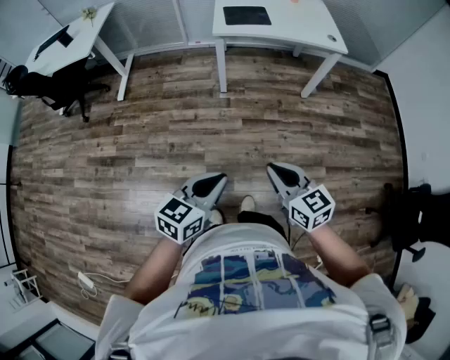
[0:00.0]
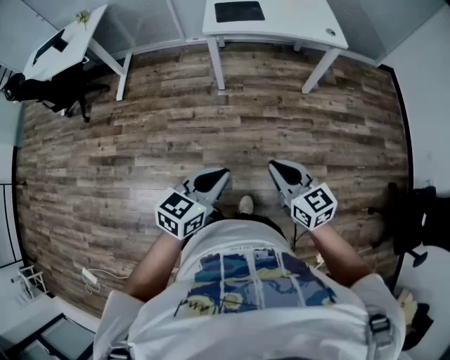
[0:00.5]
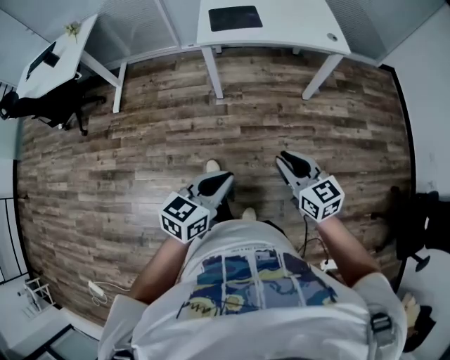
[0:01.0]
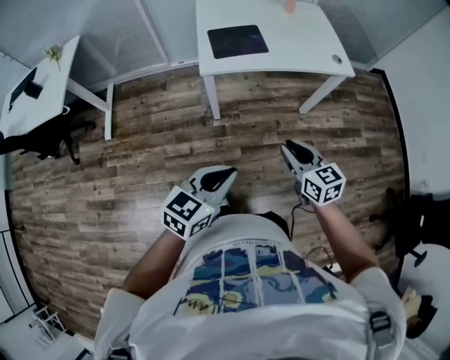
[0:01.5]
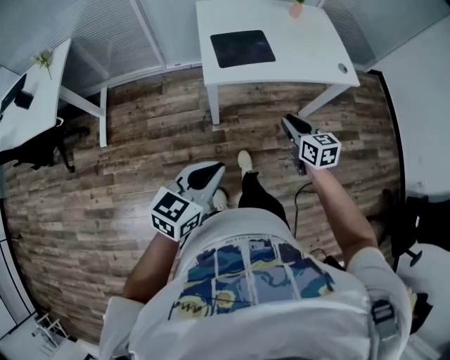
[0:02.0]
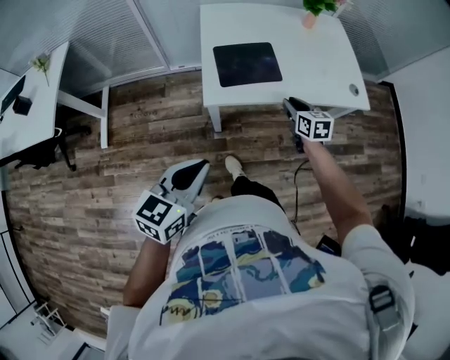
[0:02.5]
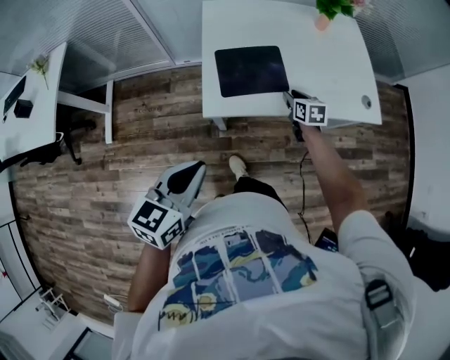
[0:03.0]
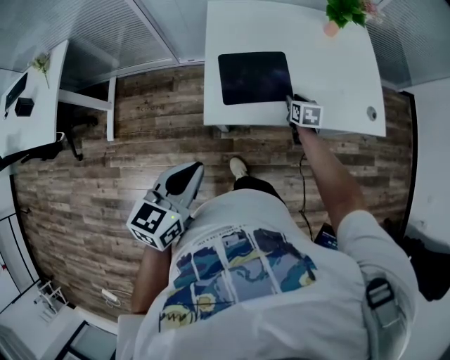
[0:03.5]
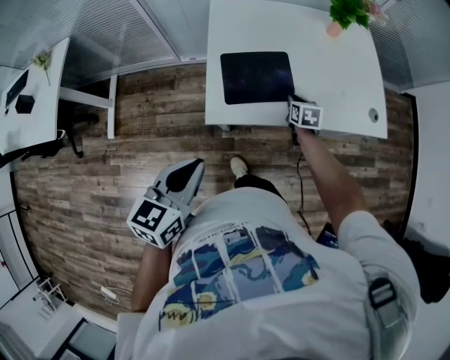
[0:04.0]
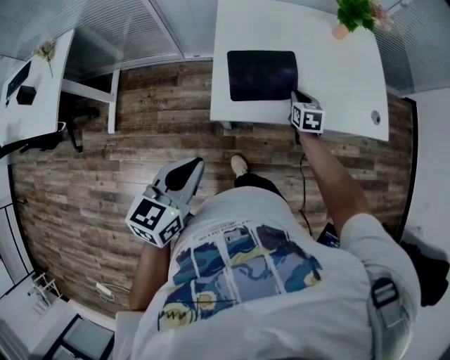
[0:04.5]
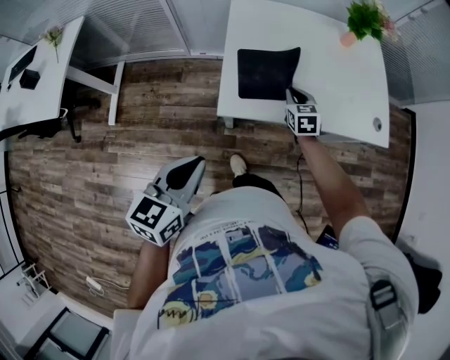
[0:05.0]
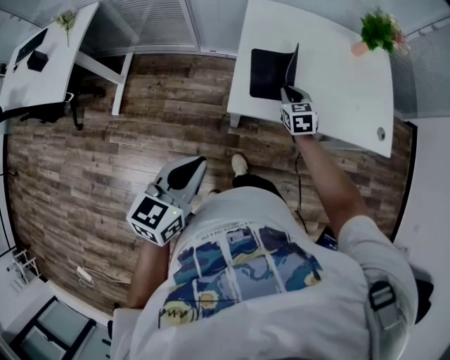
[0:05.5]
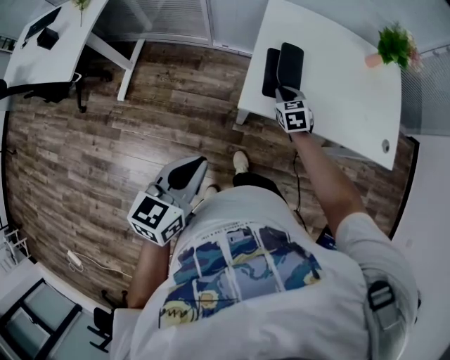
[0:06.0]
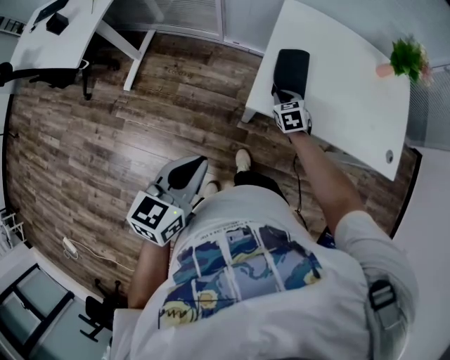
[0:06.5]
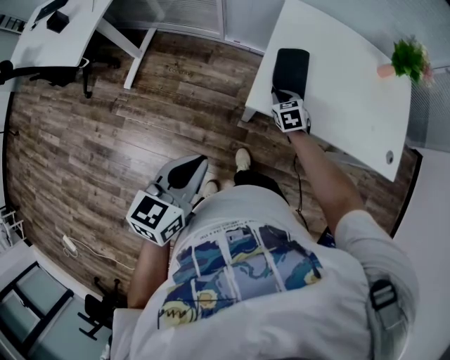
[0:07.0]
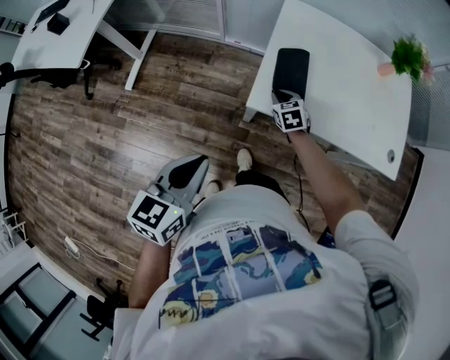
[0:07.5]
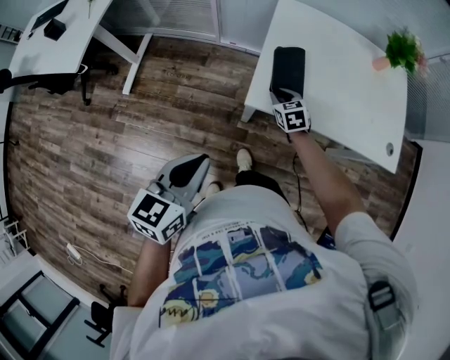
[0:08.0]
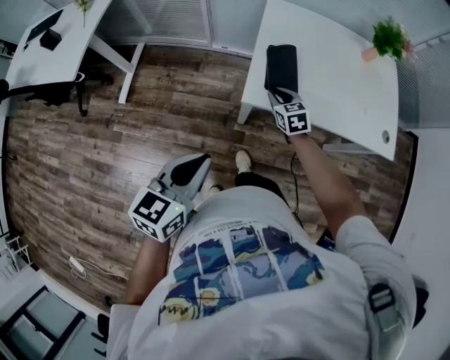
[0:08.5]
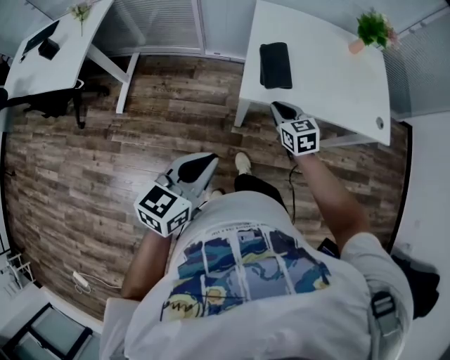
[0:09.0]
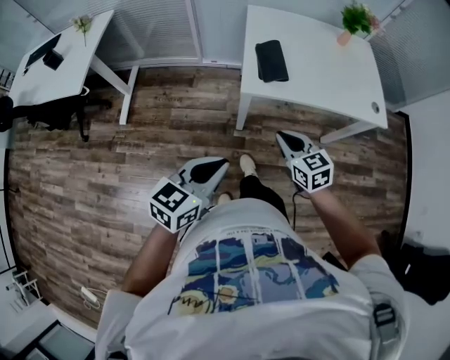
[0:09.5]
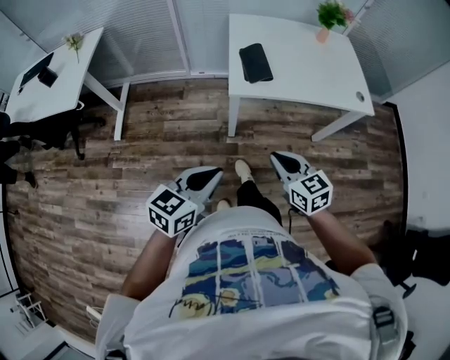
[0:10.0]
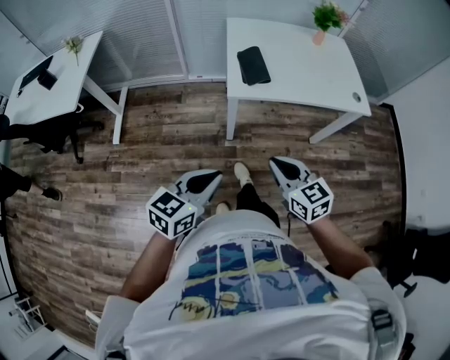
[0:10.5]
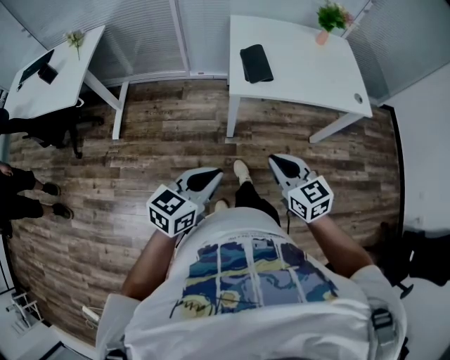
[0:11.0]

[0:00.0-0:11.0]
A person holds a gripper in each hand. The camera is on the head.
0:00.0 to 0:02.0: The two grippers travel together, forward, some 50 cm. The right gripper swivels approximately 20 degrees.
0:02.0 to 0:03.5: The left gripper heads forward, covering roughly 25 cm, while the right gripper travels forward and downward by roughly 40 cm.
0:03.5 to 0:05.5: The left gripper travels backward and to the left by some 10 cm. The right gripper heads to the left and upward, covering some 15 cm, turns by roughly 30 degrees, and closes up.
0:05.5 to 0:07.5: The right gripper heads to the left and downward, covering some 10 cm.
0:07.5 to 0:09.0: The right gripper moves backward and upward, some 15 cm. Meanwhile the left gripper goes approximately 5 cm backward.
0:09.0 to 0:11.0: The right gripper heads backward, covering roughly 30 cm, while the left gripper is displaced backward by roughly 15 cm.

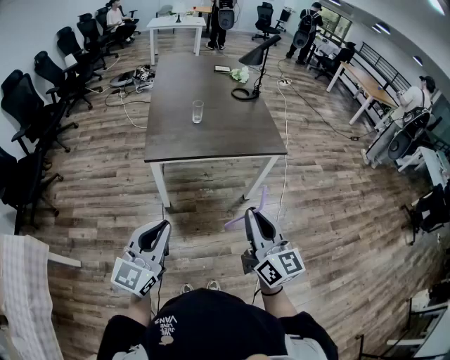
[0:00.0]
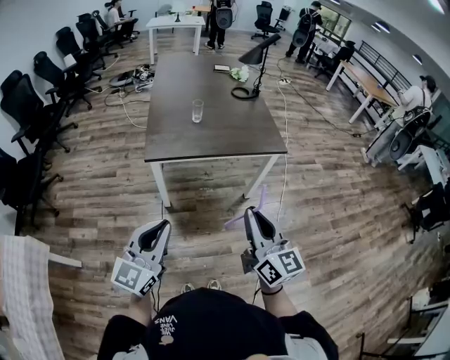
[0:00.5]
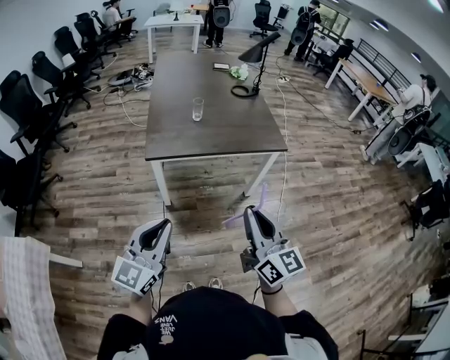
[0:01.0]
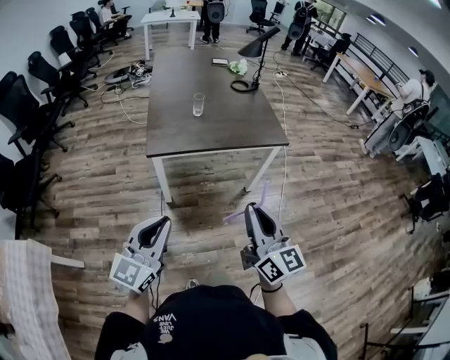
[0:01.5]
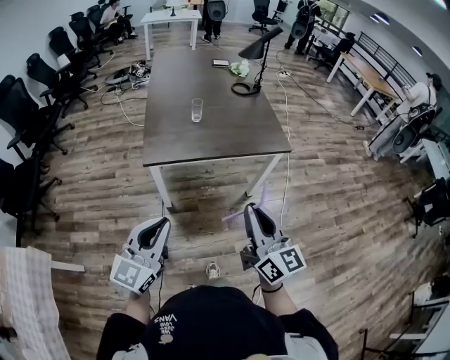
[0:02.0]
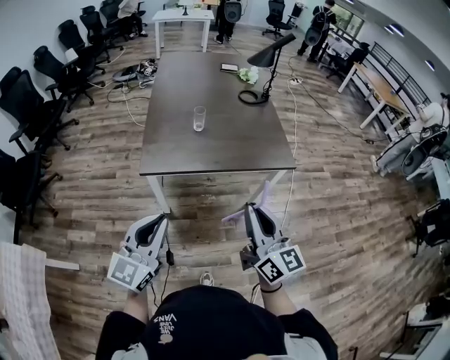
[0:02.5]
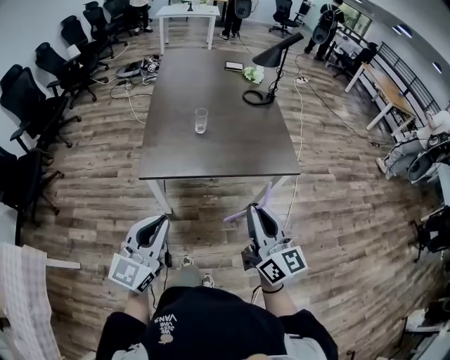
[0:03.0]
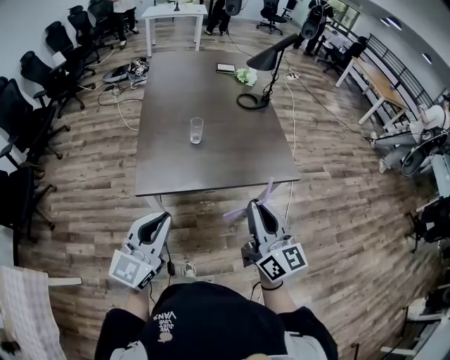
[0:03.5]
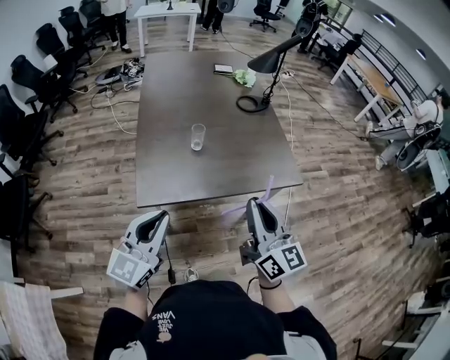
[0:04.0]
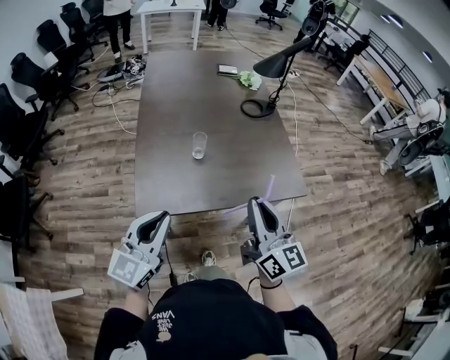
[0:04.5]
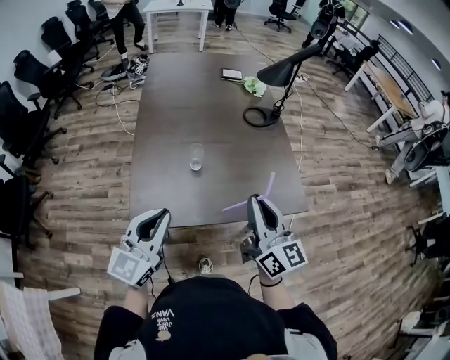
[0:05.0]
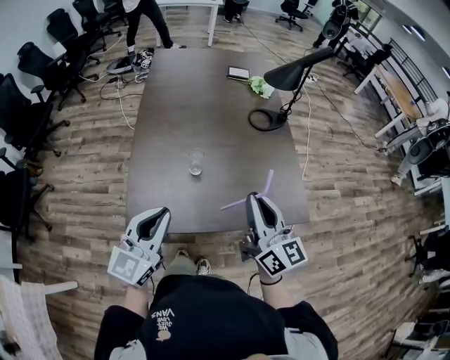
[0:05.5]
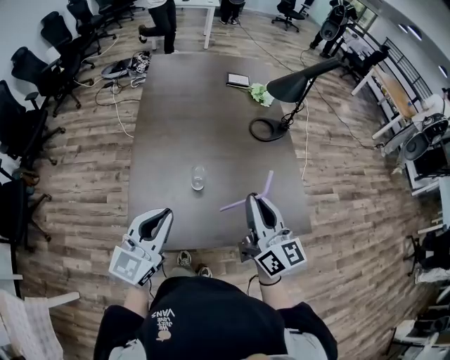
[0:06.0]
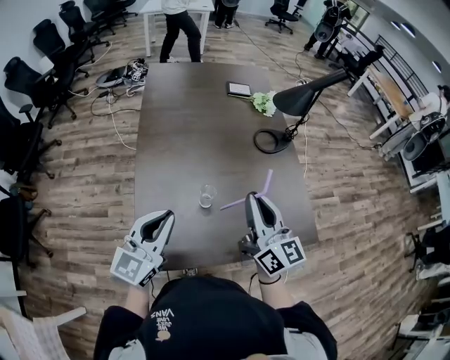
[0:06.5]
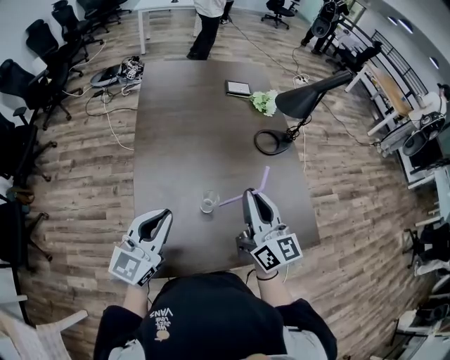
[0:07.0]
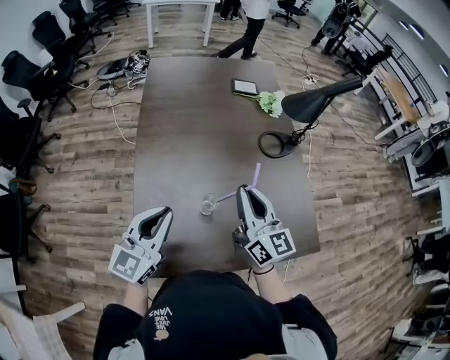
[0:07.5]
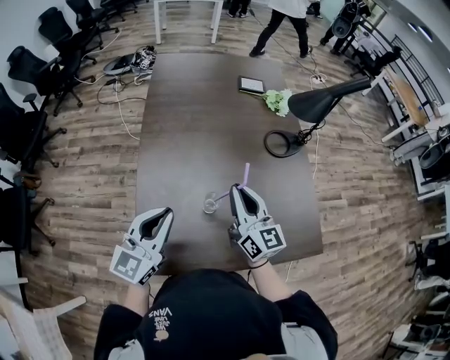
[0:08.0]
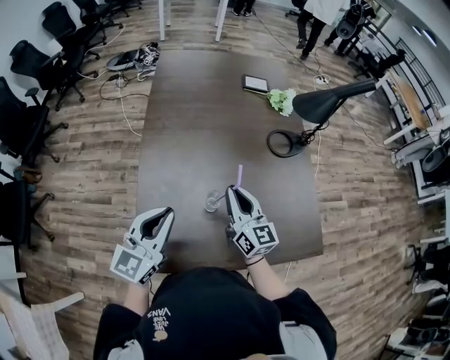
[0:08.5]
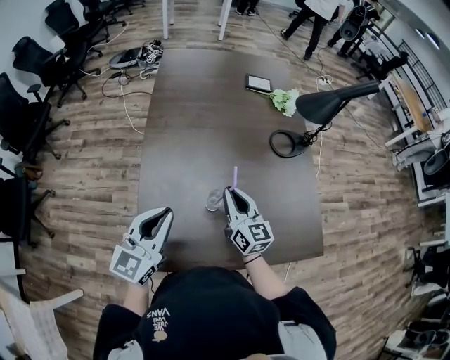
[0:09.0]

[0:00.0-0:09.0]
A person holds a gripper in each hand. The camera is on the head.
0:00.0 to 0:02.0: Both grippers travel together forward, about 5 cm.
0:02.0 to 0:04.5: The two grippers go some 30 cm forward.
0:04.5 to 0:07.0: The two grippers go some 30 cm forward.
0:07.0 to 0:09.0: The right gripper shifts about 15 cm downward.

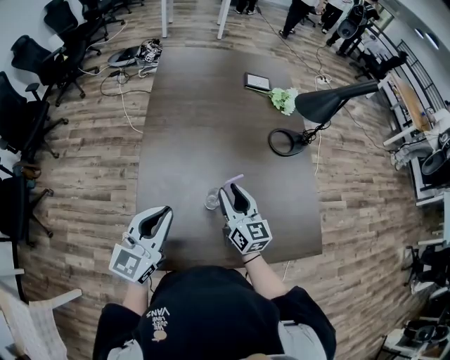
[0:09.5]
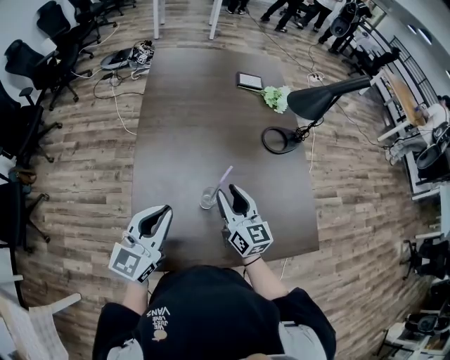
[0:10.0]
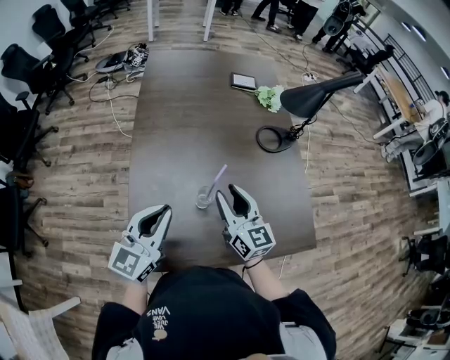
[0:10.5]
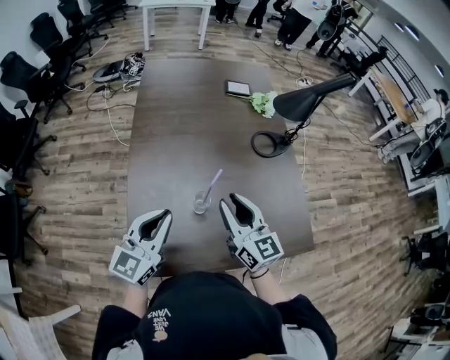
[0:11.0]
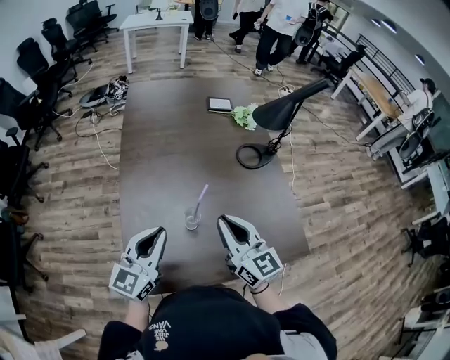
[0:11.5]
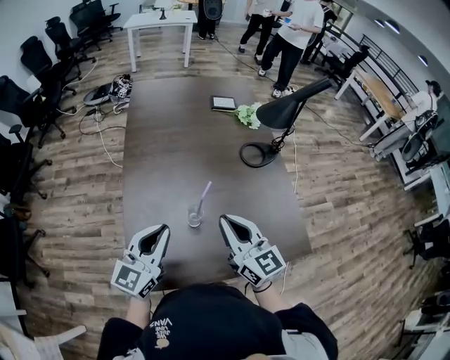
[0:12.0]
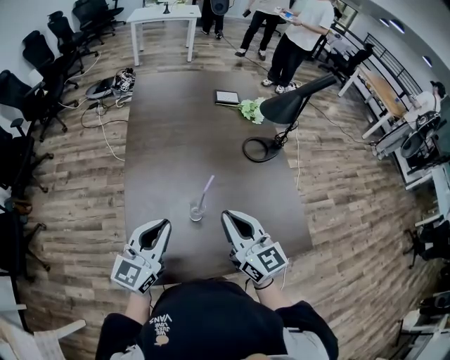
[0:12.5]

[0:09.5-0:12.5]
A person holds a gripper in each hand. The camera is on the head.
0:09.5 to 0:11.0: The right gripper goes some 10 cm upward.
0:11.0 to 0:12.5: The right gripper closes up.

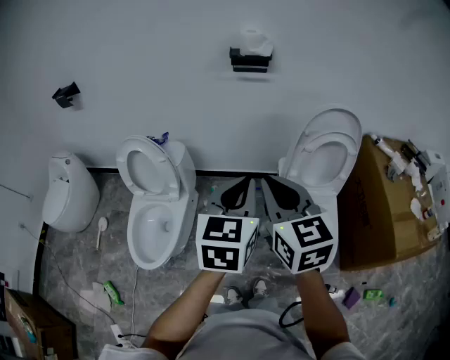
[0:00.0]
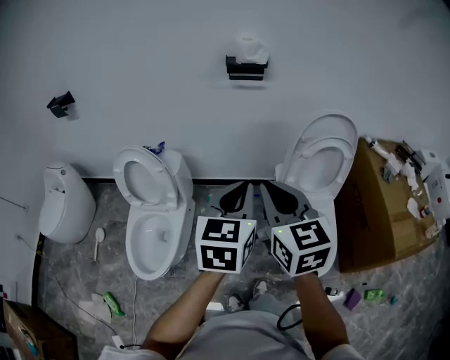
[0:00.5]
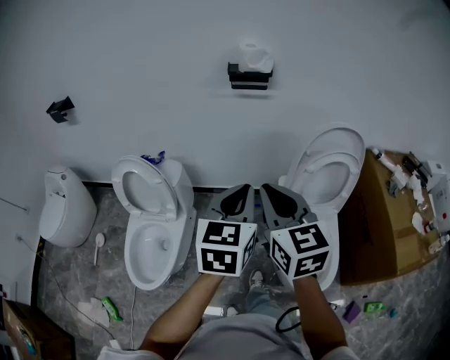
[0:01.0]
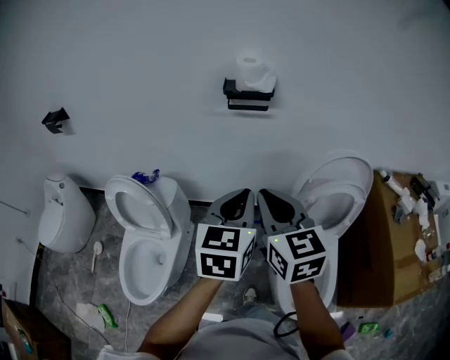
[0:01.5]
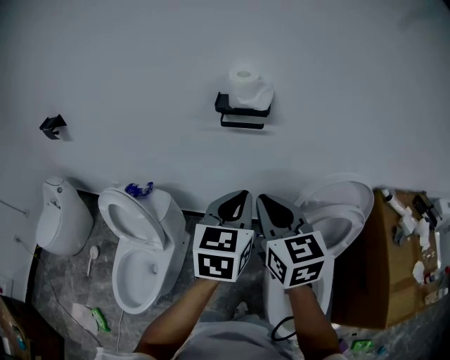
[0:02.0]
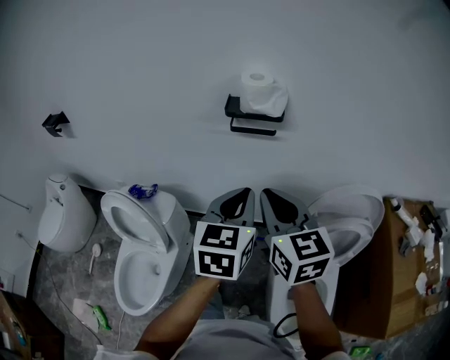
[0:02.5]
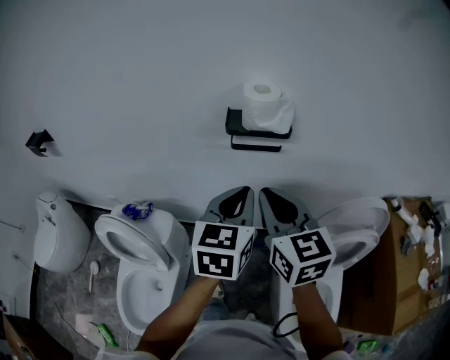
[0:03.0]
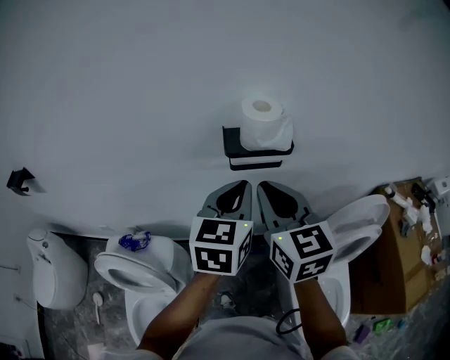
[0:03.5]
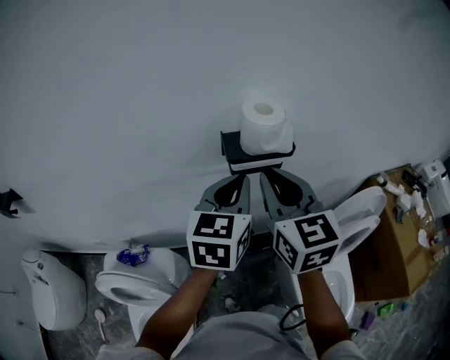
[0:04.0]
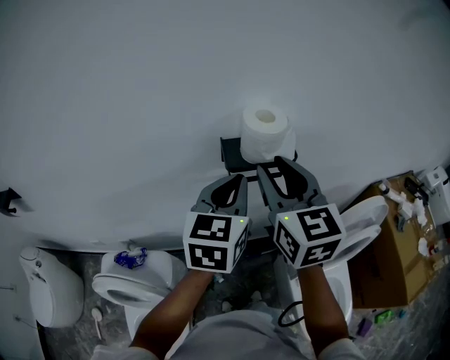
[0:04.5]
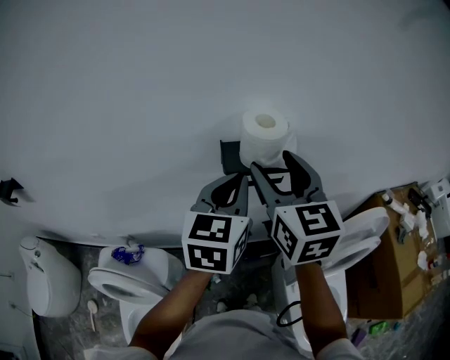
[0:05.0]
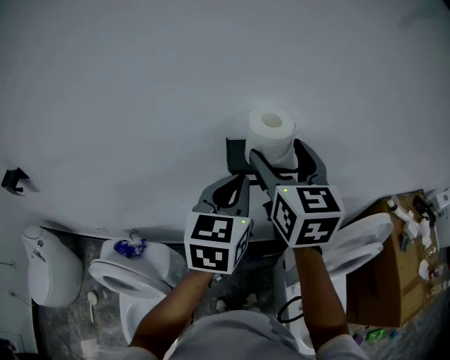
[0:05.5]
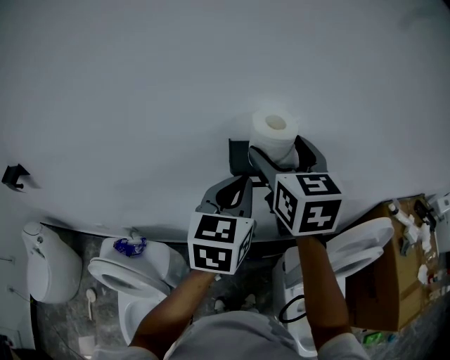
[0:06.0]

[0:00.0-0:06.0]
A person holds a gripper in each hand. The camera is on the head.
0:00.0 to 0:02.0: The grippers both shift forward by roughly 25 cm.
0:02.0 to 0:04.0: The two grippers go about 25 cm forward and to the left.
0:04.0 to 0:06.0: The right gripper travels forward by approximately 10 cm, and opens up.
